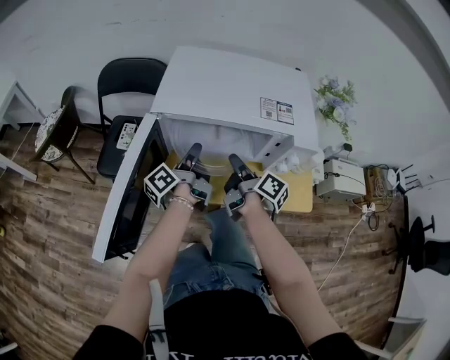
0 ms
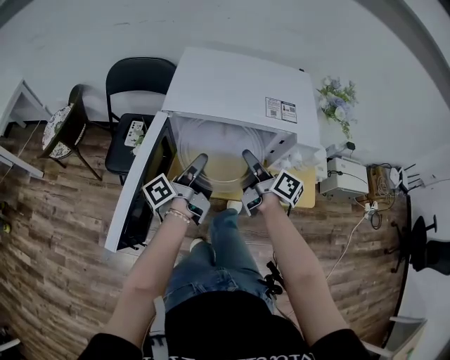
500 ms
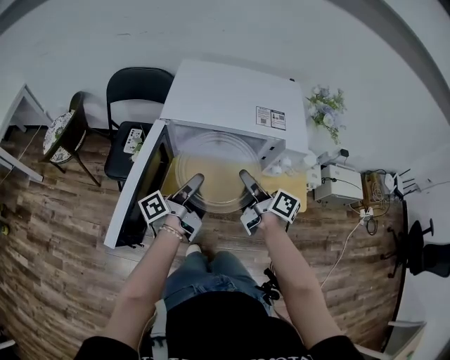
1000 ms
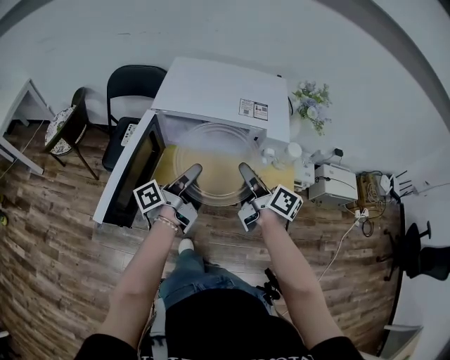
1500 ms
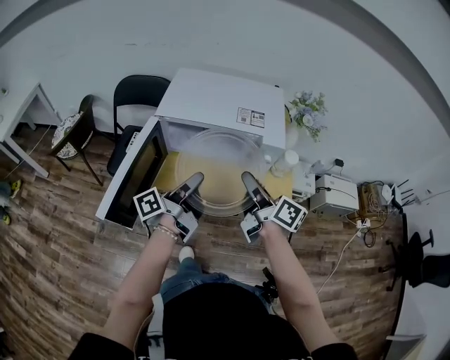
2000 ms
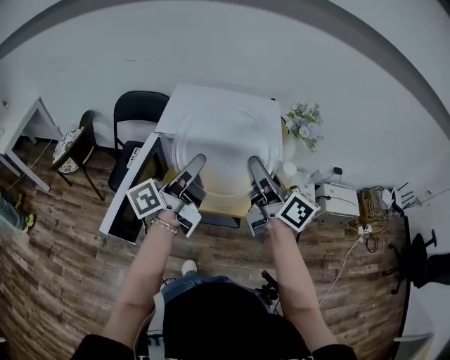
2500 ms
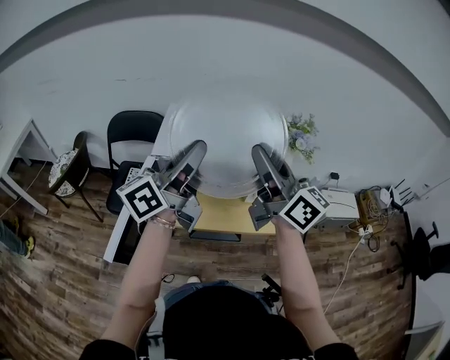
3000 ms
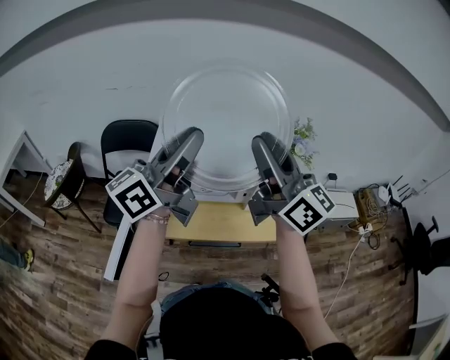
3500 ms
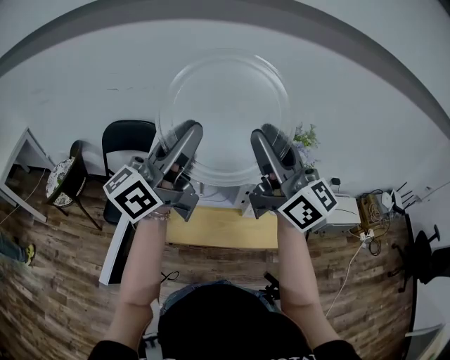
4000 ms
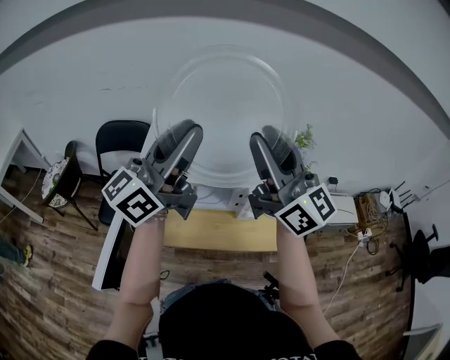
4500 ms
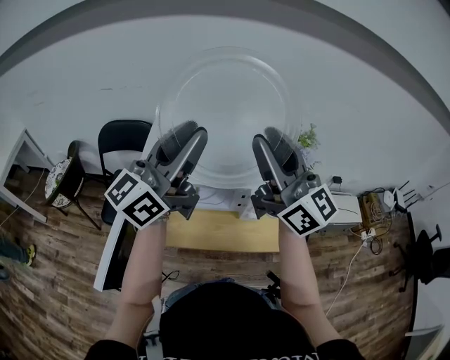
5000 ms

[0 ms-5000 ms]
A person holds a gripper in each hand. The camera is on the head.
0 ms to 2500 ms: The two grippers go roughly 30 cm upward and backward. The left gripper changes its angle by approximately 30 degrees. Meanwhile the right gripper turns by approximately 40 degrees.
2500 ms to 5000 ms: Both grippers move upward and forward, roughly 15 cm. The left gripper rotates around the line of its fingers by approximately 40 degrees, clockwise from behind. Meanwhile the right gripper changes its angle by about 40 degrees.

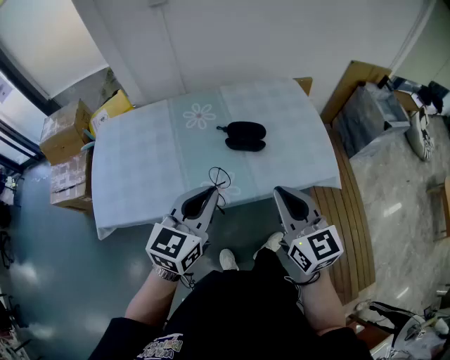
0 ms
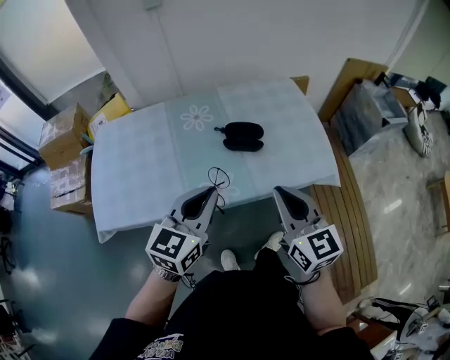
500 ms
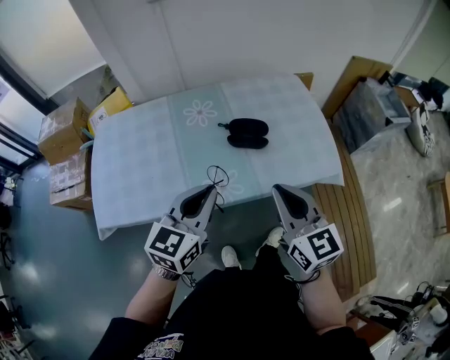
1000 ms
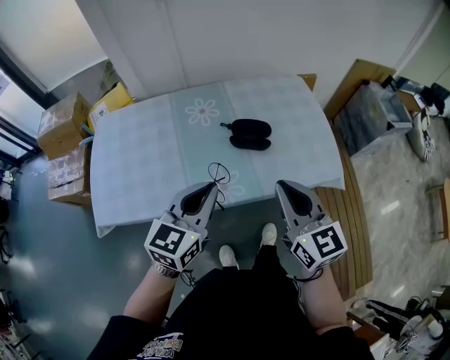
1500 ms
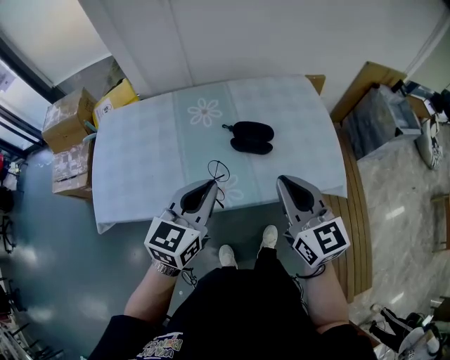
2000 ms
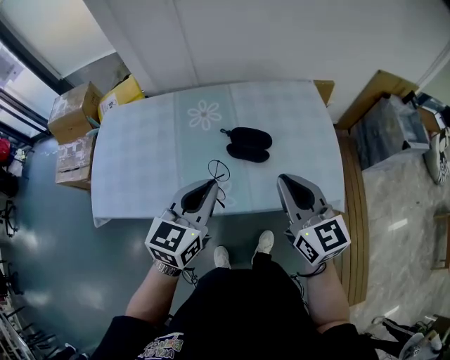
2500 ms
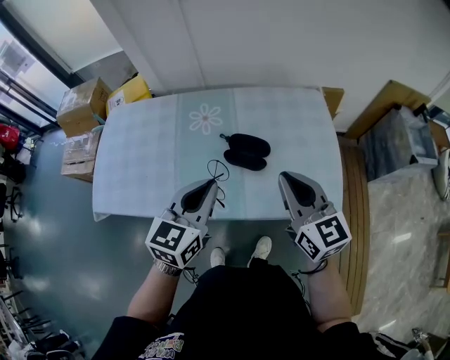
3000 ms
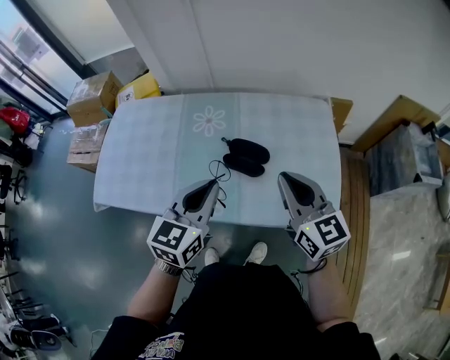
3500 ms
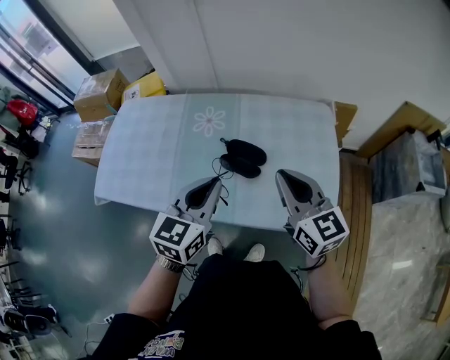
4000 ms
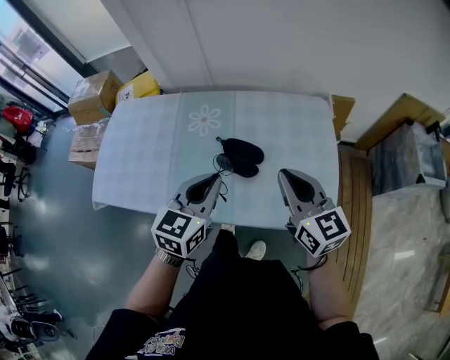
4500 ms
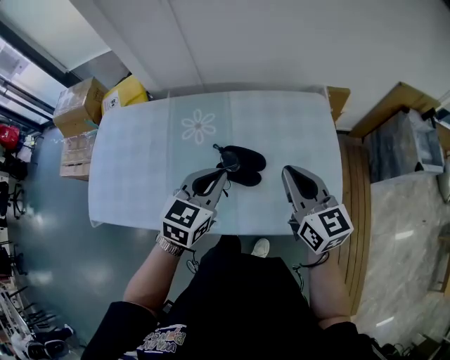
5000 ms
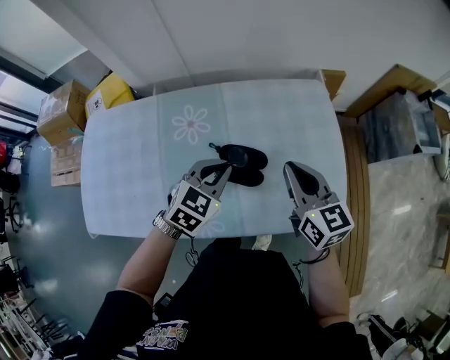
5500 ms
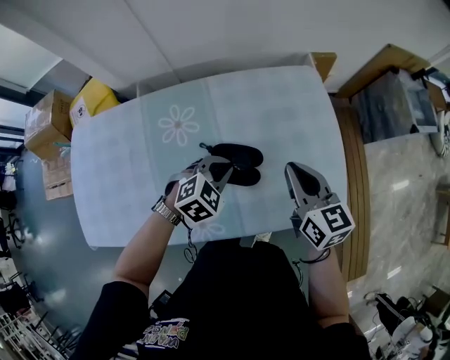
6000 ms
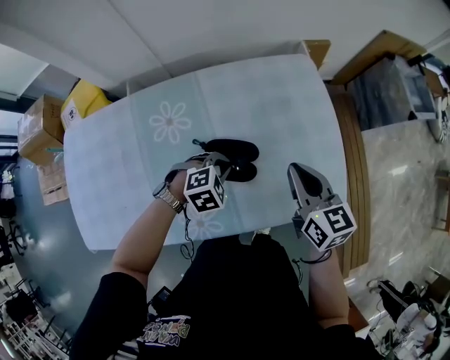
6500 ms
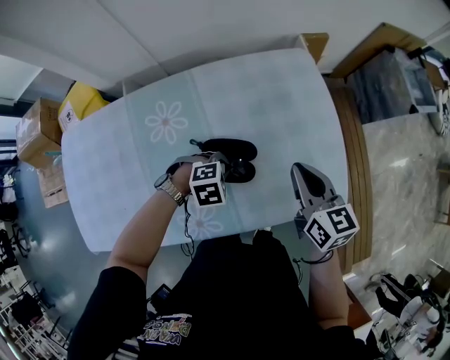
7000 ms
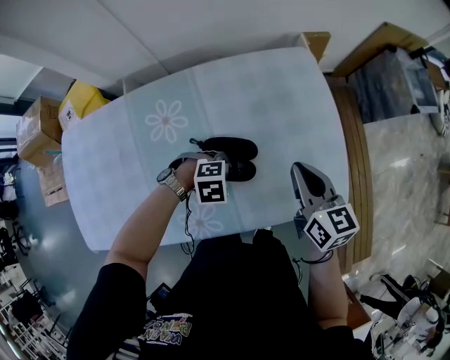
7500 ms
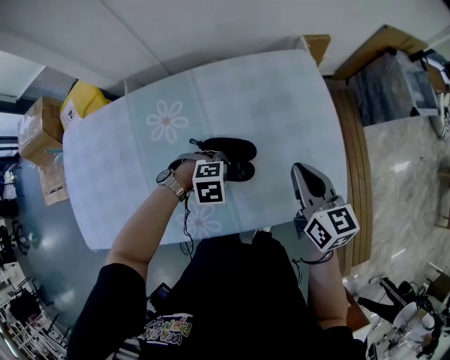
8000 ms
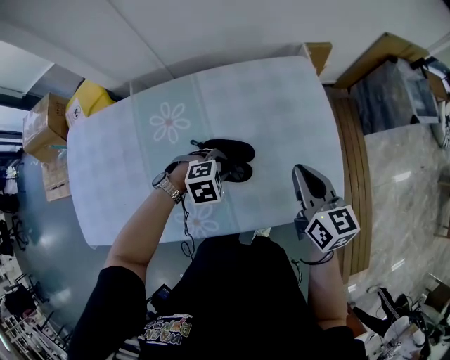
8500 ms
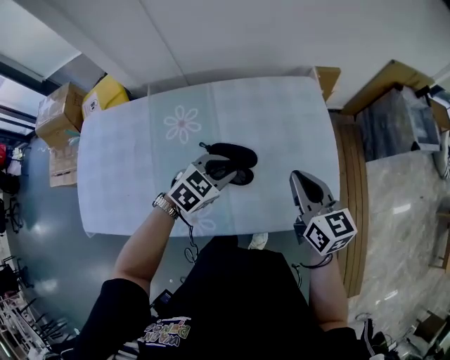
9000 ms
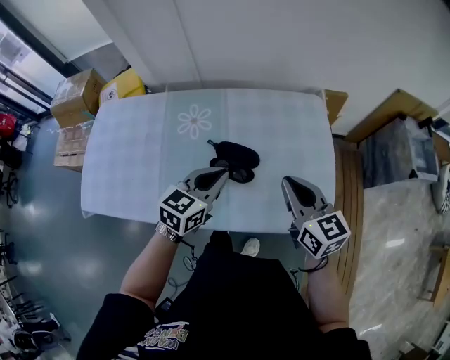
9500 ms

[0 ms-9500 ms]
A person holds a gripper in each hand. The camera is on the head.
0 ms to 2000 ms: The left gripper ends up some 5 cm from where it was. Meanwhile the right gripper goes about 5 cm forward.
2000 ms to 4000 ms: The grippers both shift to the right and forward by roughly 15 cm.
4000 ms to 5500 ms: The left gripper shifts approximately 20 cm forward and downward, and rotates roughly 40 degrees. Meanwhile the right gripper moves forward and downward, some 10 cm.
5500 ms to 7500 ms: The right gripper goes about 5 cm downward; the left gripper shifts approximately 15 cm downward, and tilts its fingers roughly 40 degrees downward.
7500 ms to 9500 ms: The right gripper goes roughly 5 cm upward, and swivels roughly 20 degrees, while the left gripper shifts roughly 20 cm upward, angles its fingers upward, by about 50 degrees, and opens, then closes once more.

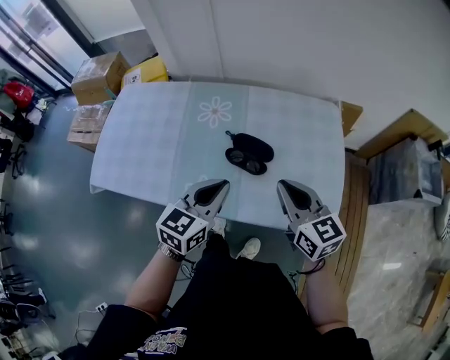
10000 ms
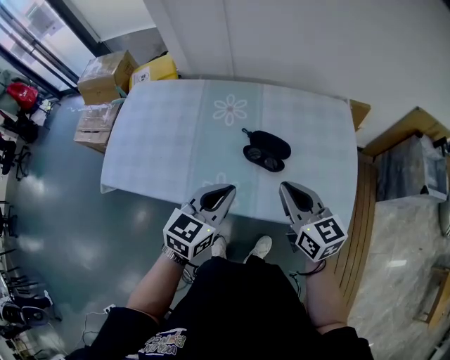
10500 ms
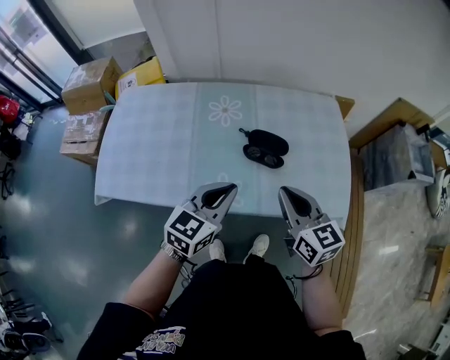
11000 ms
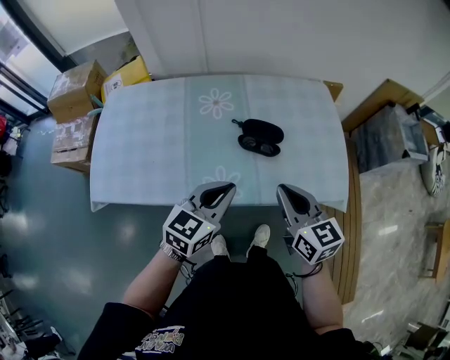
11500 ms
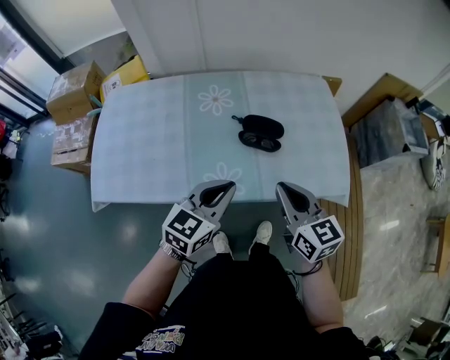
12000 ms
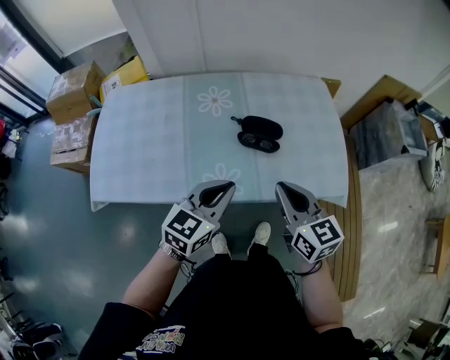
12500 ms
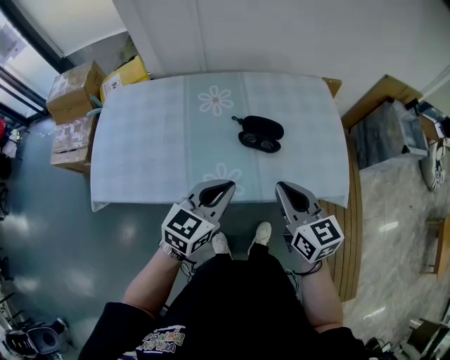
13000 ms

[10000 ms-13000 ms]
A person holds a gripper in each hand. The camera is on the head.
10000 ms to 11500 ms: Both grippers move to the left and backward, approximately 10 cm.
11500 ms to 13000 ms: Neither gripper changes place.

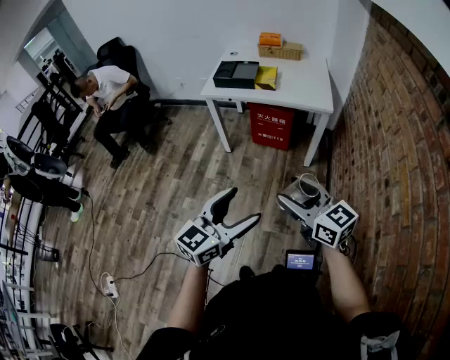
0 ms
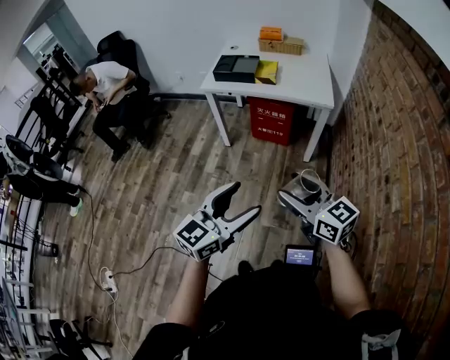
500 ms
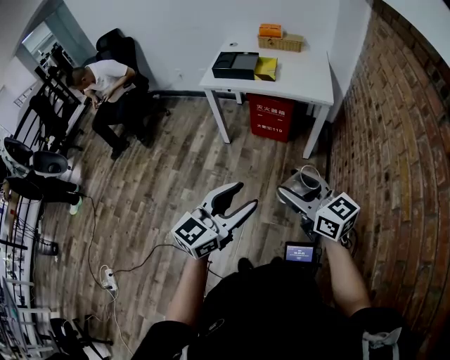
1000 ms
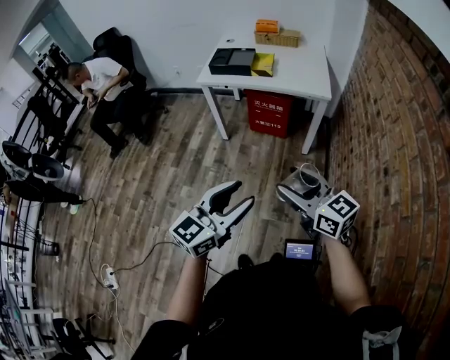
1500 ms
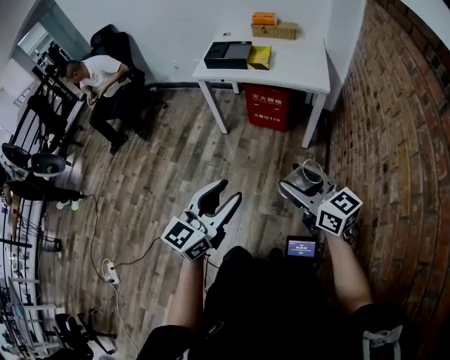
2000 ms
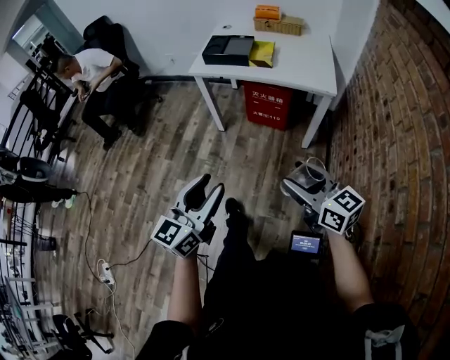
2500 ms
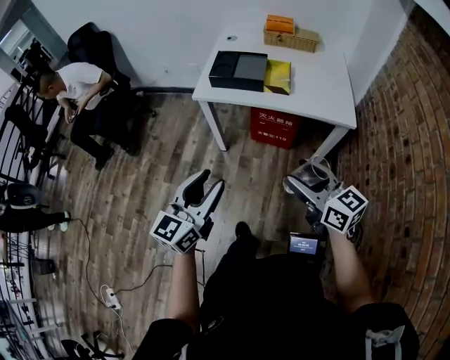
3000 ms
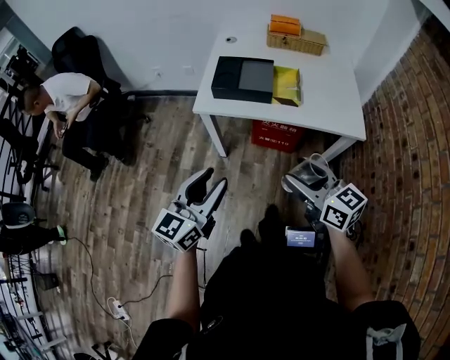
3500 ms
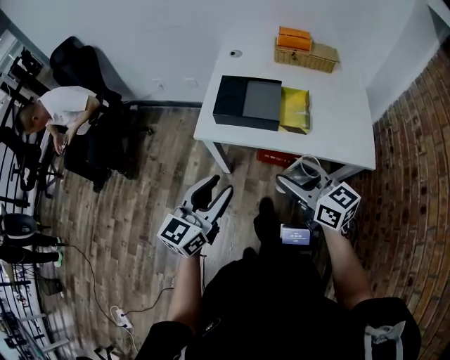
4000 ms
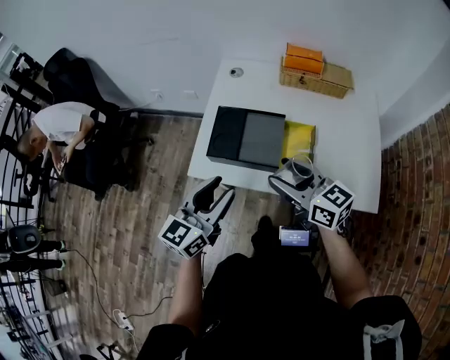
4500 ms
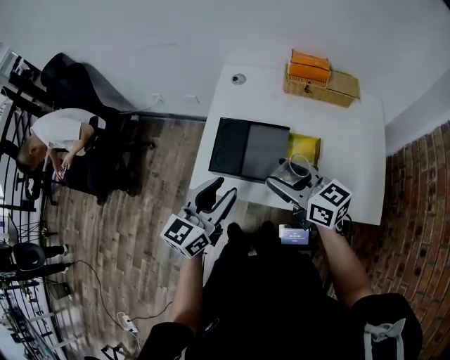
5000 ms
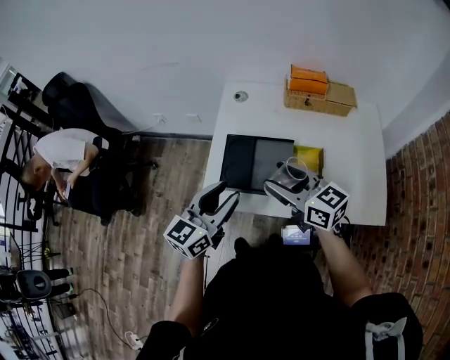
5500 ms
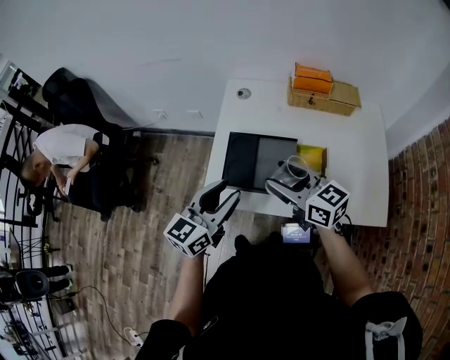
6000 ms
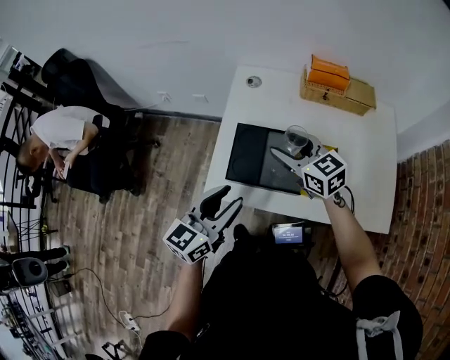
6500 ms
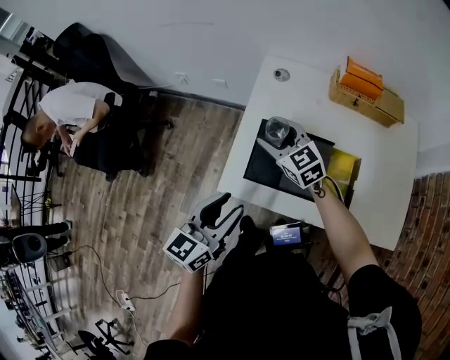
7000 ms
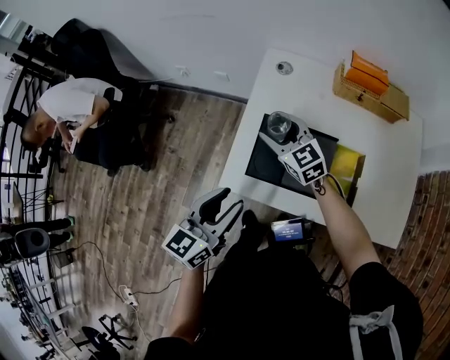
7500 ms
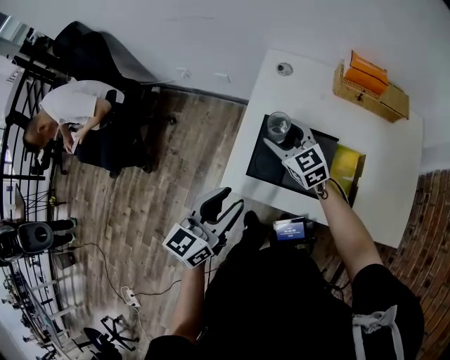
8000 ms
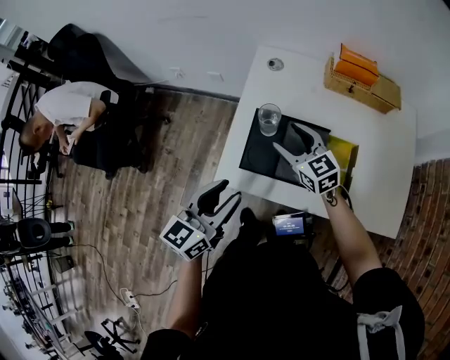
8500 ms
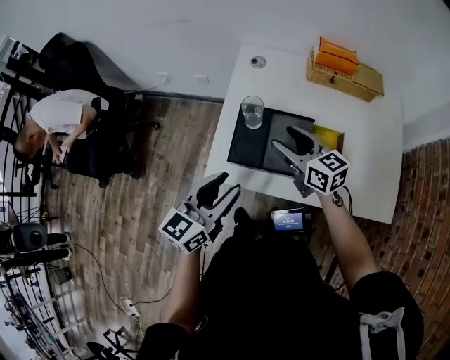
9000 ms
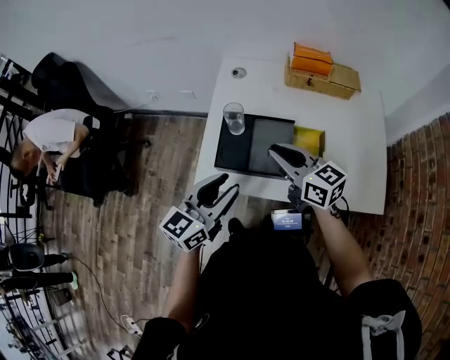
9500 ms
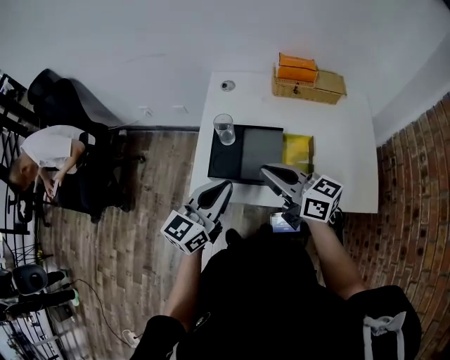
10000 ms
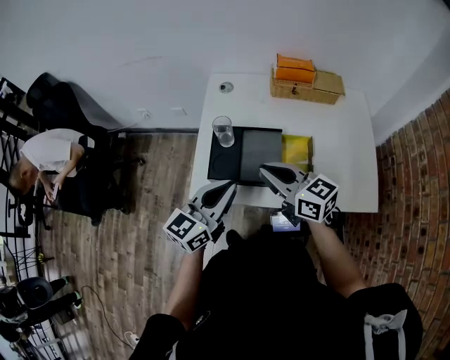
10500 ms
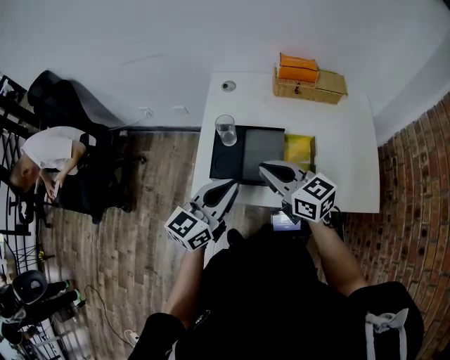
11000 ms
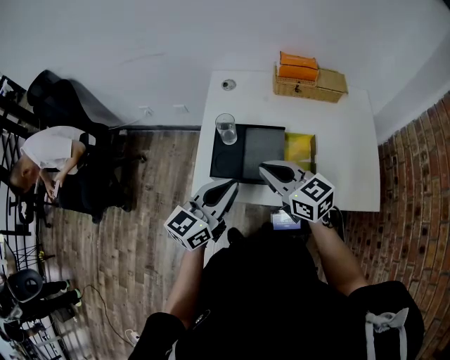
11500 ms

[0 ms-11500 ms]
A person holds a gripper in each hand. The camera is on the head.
0 ms to 2000 ms: The left gripper closes up.
2000 ms to 4000 ms: Both grippers are carried forward, about 50 cm.
4000 ms to 6000 ms: The grippers both shift forward by about 25 cm.
6000 ms to 7500 ms: The right gripper shifts about 20 cm forward, downward and to the left, and swivels about 20 degrees. The left gripper is displaced to the left by approximately 5 cm.
7500 ms to 9500 ms: The right gripper moves backward, to the right and upward, roughly 20 cm, rotates some 30 degrees, and closes; the left gripper heads to the right, covering some 5 cm.
9500 ms to 11500 ms: The left gripper closes its fingers.
